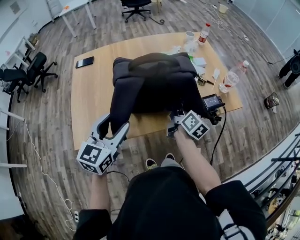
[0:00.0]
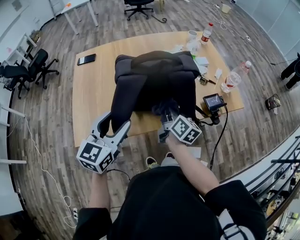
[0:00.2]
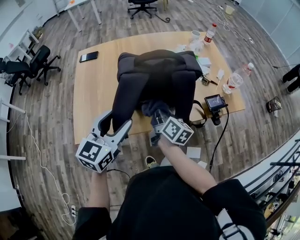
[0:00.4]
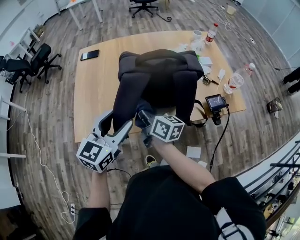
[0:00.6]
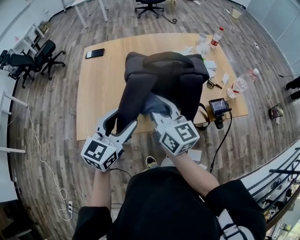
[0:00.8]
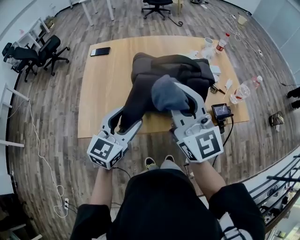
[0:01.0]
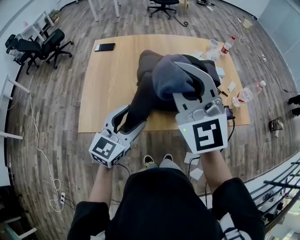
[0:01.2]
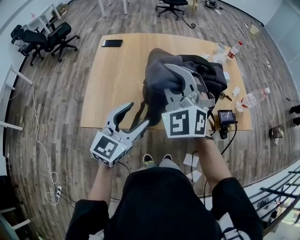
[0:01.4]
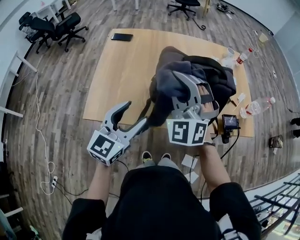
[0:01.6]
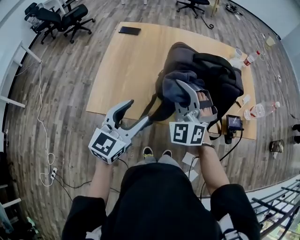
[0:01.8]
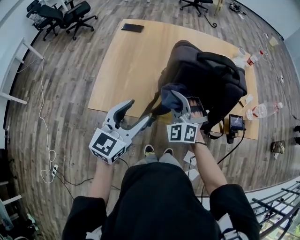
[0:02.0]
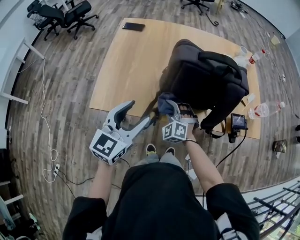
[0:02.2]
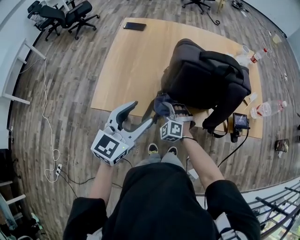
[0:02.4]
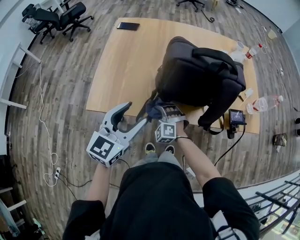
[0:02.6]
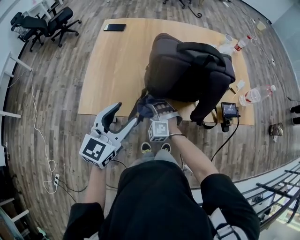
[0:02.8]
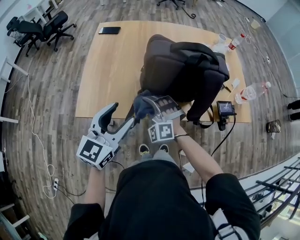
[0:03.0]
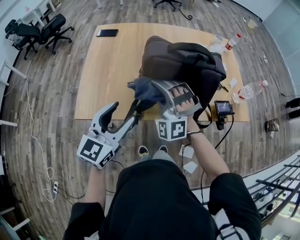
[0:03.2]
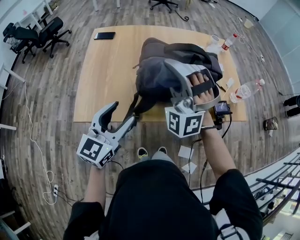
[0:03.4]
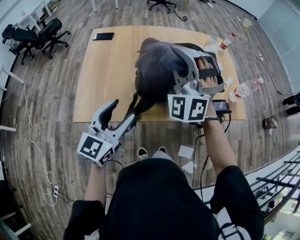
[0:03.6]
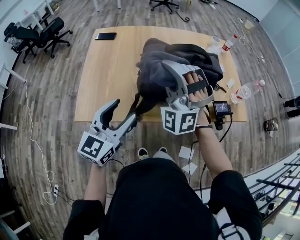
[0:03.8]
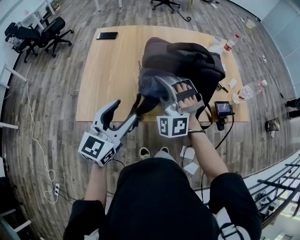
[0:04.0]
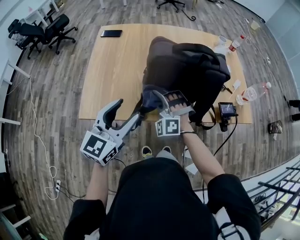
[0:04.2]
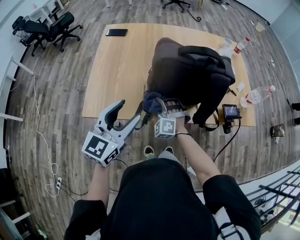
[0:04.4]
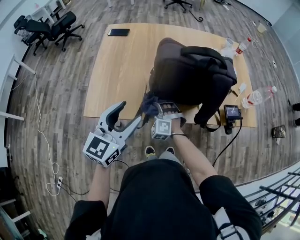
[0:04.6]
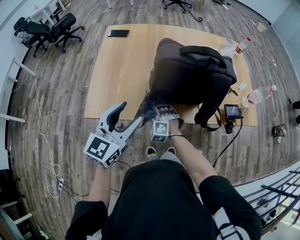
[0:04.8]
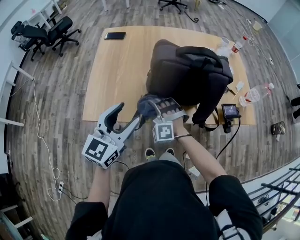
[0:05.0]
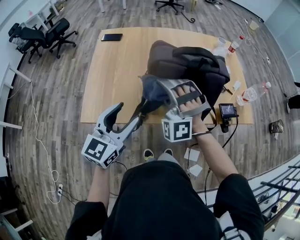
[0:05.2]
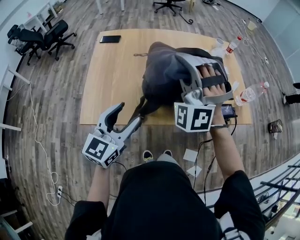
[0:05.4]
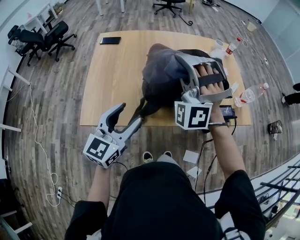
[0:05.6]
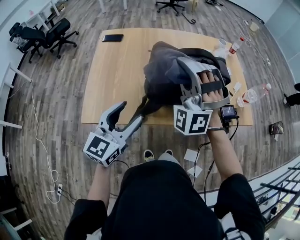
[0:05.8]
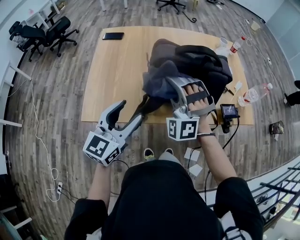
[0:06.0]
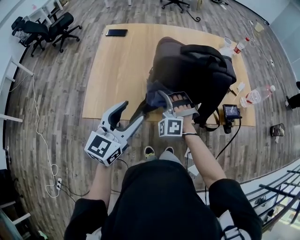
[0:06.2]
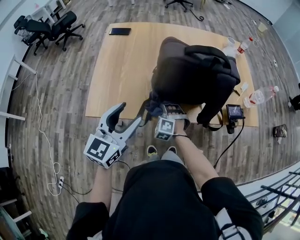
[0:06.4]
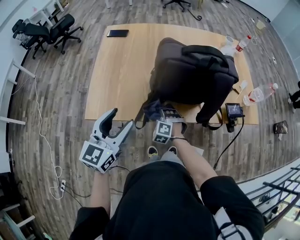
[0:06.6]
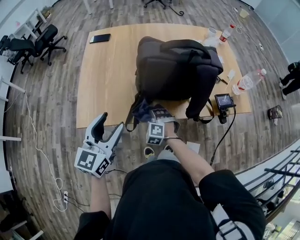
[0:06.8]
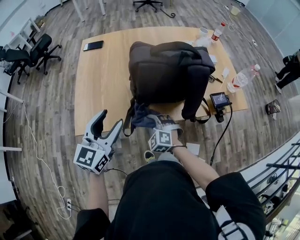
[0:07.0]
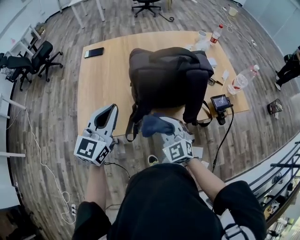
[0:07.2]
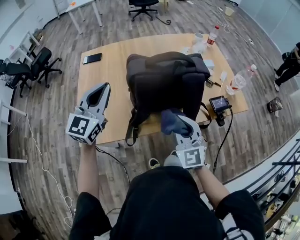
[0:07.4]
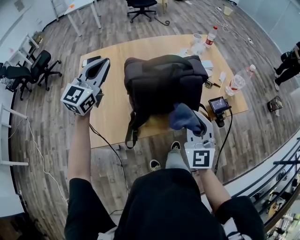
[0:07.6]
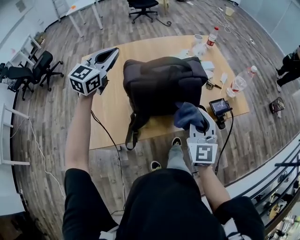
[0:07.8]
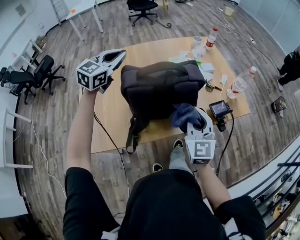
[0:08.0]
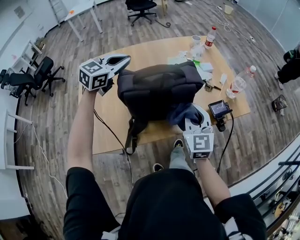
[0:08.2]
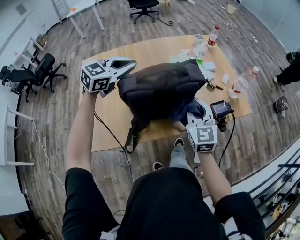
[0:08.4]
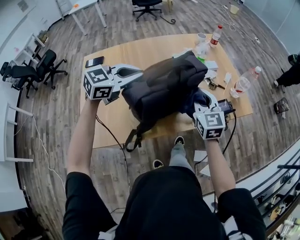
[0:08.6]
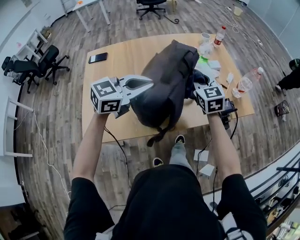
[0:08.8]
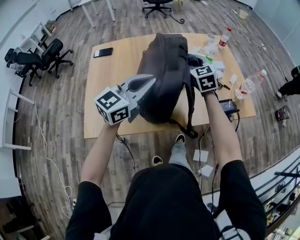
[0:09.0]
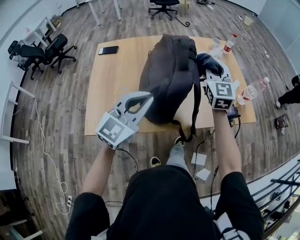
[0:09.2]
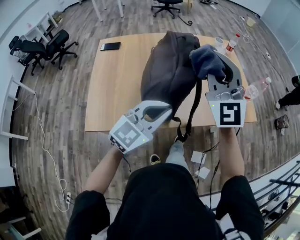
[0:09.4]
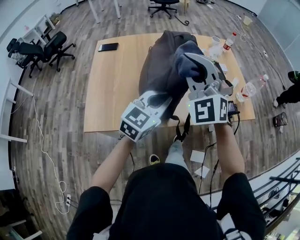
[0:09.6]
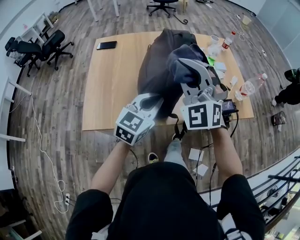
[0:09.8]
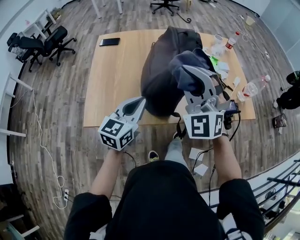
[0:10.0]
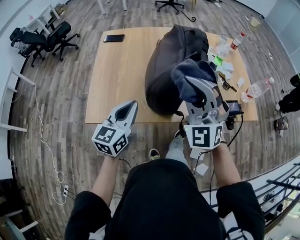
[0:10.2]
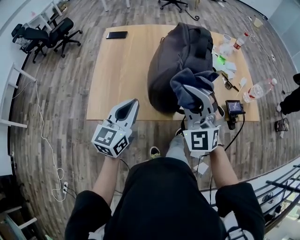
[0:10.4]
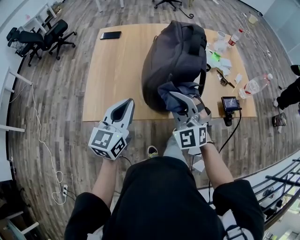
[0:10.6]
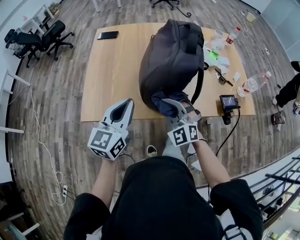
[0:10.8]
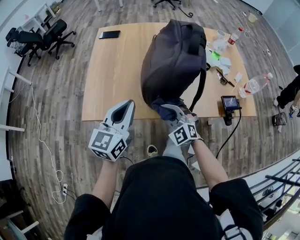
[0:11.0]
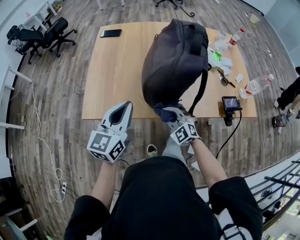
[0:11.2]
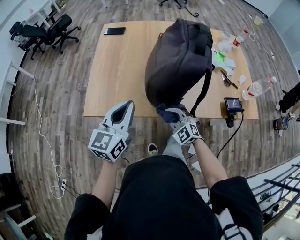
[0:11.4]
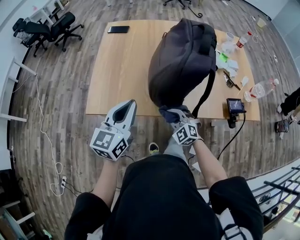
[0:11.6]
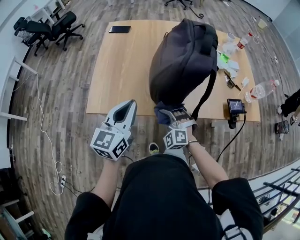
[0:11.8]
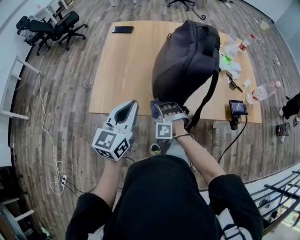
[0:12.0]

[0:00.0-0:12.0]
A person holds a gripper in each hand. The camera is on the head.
0.0 to 1.6 s: The right gripper goes roughly 30 cm to the left and upward, and twists roughly 110 degrees counterclockwise, seen from behind, while the left gripper moves some 5 cm.
1.6 to 3.0 s: The right gripper travels downward by roughly 25 cm, and changes its angle by roughly 20 degrees.
3.0 to 4.4 s: The right gripper moves about 30 cm upward and comes back.
4.4 to 6.0 s: The right gripper swings up and down, about 40 cm each way, with 2 reversals, and turns by about 30 degrees.
6.0 to 7.6 s: The right gripper shifts some 15 cm to the right, reaches about 30 cm downward, then returns, and rolls clockwise, seen from behind, by some 60 degrees; the left gripper travels forward and upward by about 25 cm, turns by roughly 20 degrees, and closes up.
7.6 to 9.0 s: The left gripper is displaced to the right by approximately 15 cm, and rotates about 20 degrees. Meanwhile the right gripper goes about 25 cm forward and to the left, and rotates approximately 20 degrees.
9.0 to 10.4 s: The left gripper goes some 20 cm backward, to the left and downward, and rotates some 30 degrees. Meanwhile the right gripper goes some 25 cm backward, and turns by about 40 degrees.
10.4 to 12.0 s: The right gripper travels downward by approximately 30 cm, and tips its fingers downward by approximately 40 degrees.

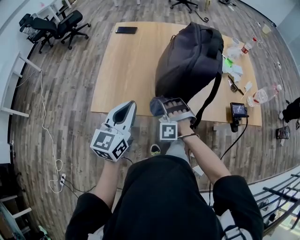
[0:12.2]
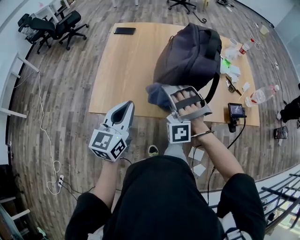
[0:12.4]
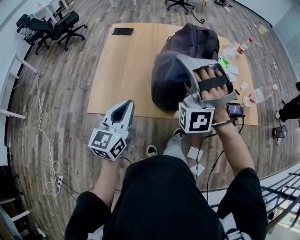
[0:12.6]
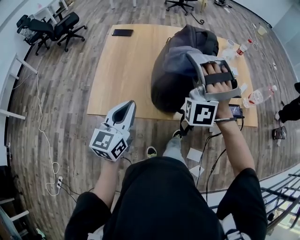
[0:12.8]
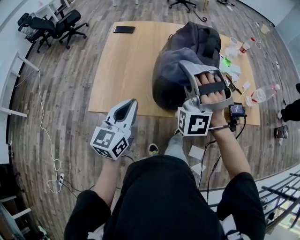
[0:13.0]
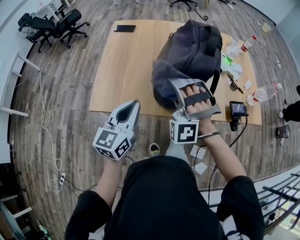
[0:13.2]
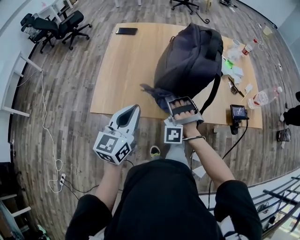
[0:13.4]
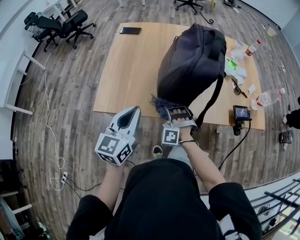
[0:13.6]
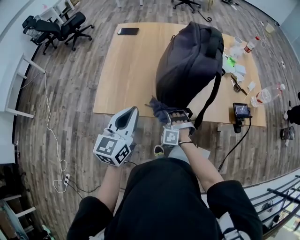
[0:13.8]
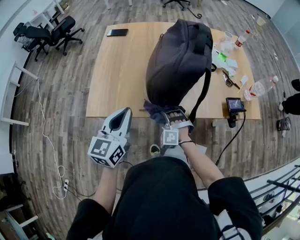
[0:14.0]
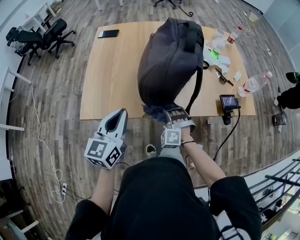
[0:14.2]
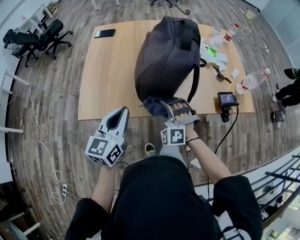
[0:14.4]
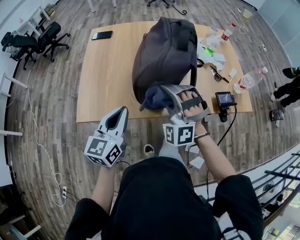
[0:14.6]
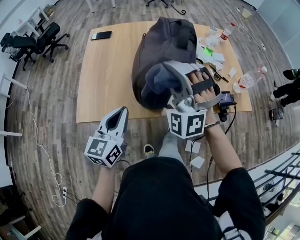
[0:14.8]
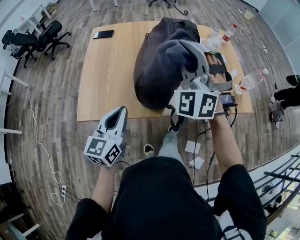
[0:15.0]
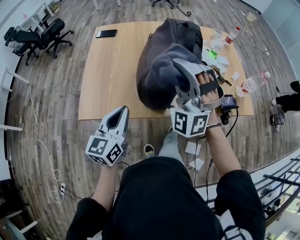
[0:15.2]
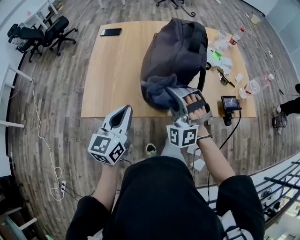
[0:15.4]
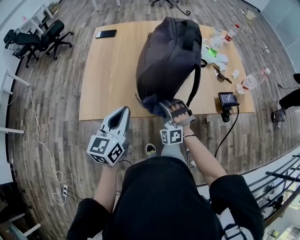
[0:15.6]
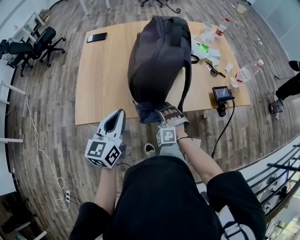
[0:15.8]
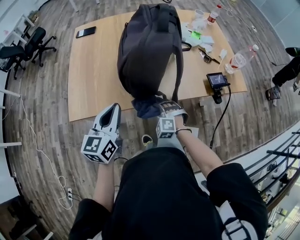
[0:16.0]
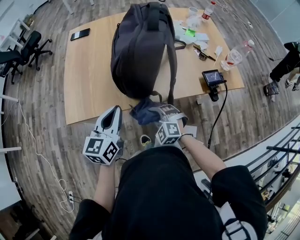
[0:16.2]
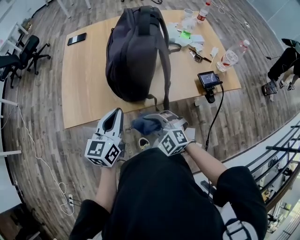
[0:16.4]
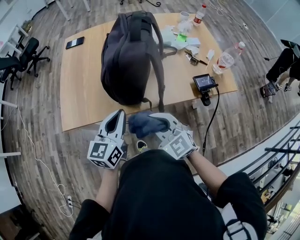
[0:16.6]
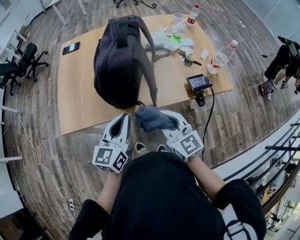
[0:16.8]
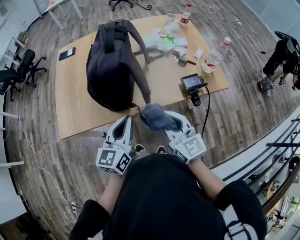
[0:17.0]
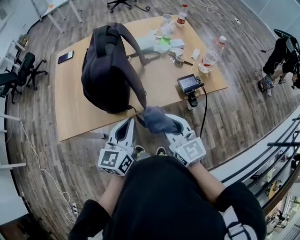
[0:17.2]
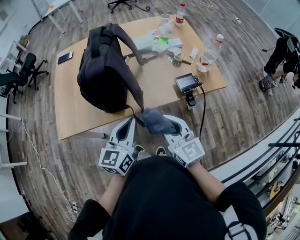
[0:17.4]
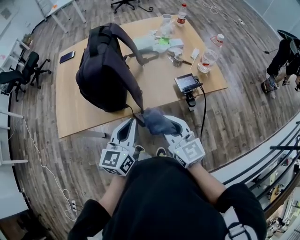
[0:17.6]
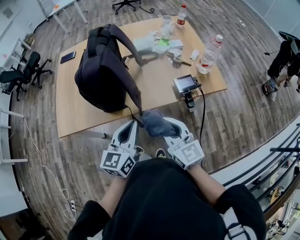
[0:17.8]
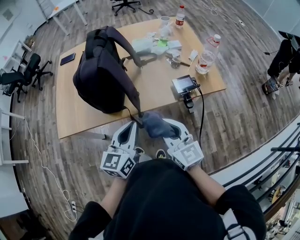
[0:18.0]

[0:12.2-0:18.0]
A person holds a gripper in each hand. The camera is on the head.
12.2 to 13.6 s: The right gripper goes upward and returns, some 30 cm each way.
13.6 to 15.0 s: The right gripper goes about 35 cm upward, and angles its fingers upward, by approximately 40 degrees.
15.0 to 16.6 s: The right gripper travels downward and backward by about 30 cm, and rolls clockwise, seen from behind, by roughly 60 degrees; the left gripper travels to the right by approximately 10 cm.
16.6 to 18.0 s: Both grippers move to the right, some 20 cm. The right gripper changes its angle by approximately 30 degrees.

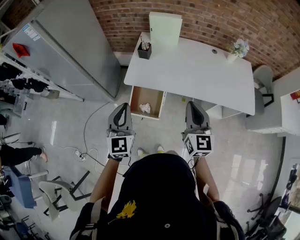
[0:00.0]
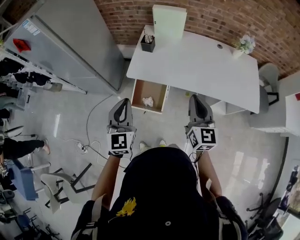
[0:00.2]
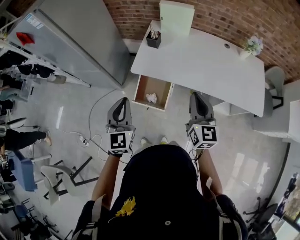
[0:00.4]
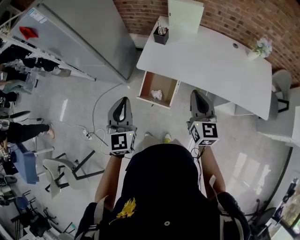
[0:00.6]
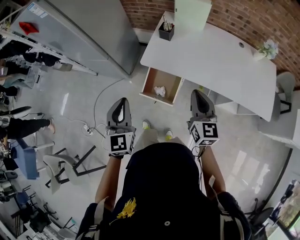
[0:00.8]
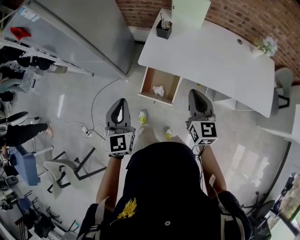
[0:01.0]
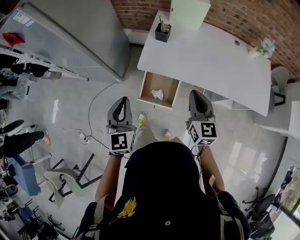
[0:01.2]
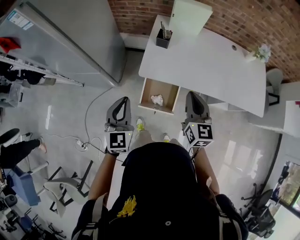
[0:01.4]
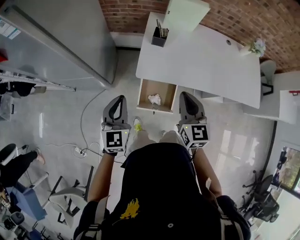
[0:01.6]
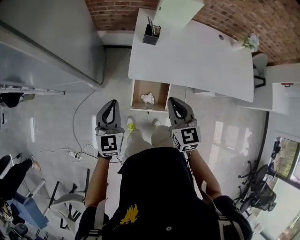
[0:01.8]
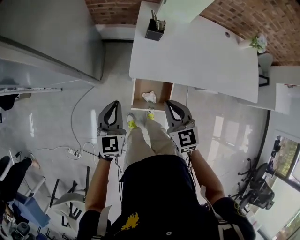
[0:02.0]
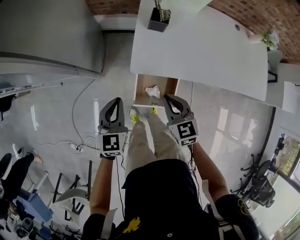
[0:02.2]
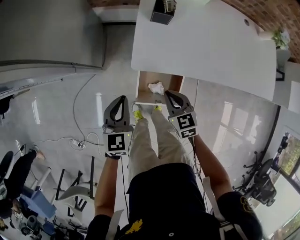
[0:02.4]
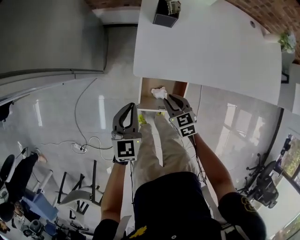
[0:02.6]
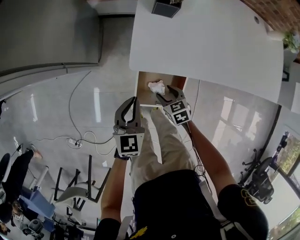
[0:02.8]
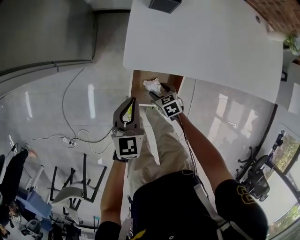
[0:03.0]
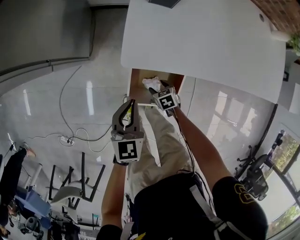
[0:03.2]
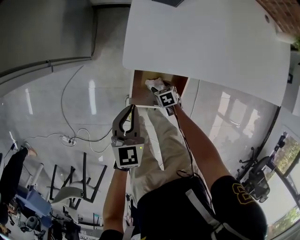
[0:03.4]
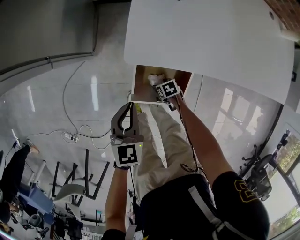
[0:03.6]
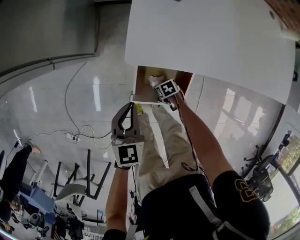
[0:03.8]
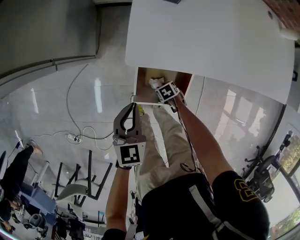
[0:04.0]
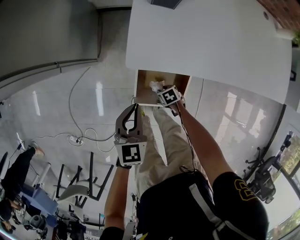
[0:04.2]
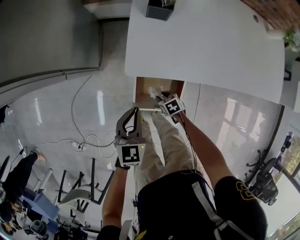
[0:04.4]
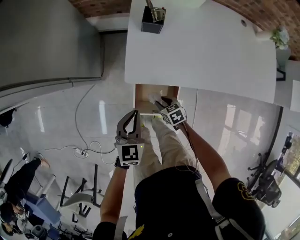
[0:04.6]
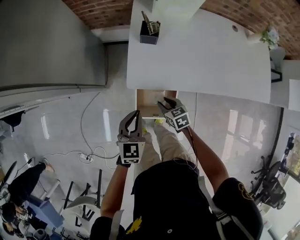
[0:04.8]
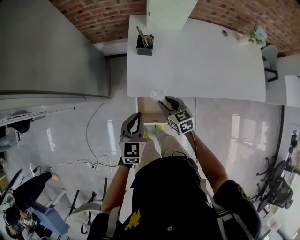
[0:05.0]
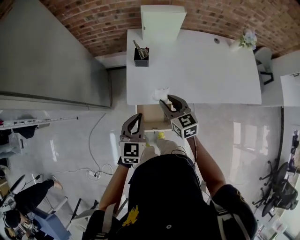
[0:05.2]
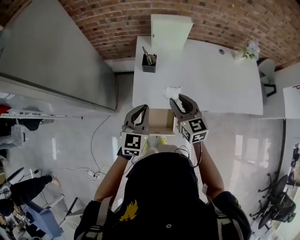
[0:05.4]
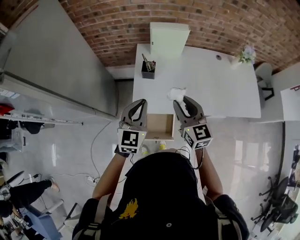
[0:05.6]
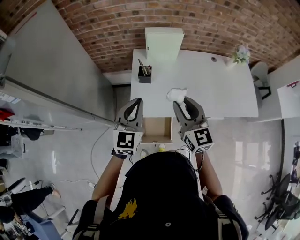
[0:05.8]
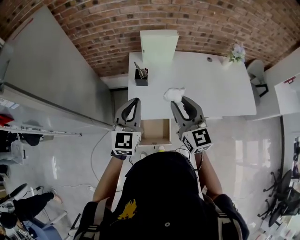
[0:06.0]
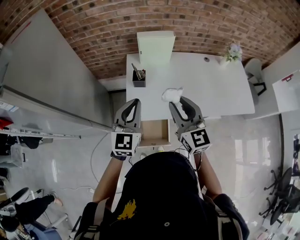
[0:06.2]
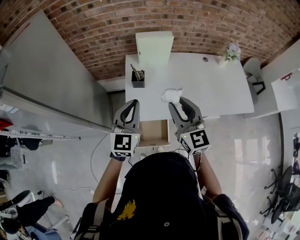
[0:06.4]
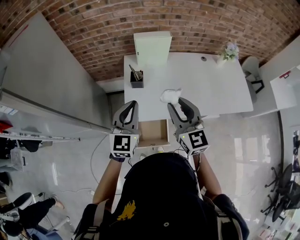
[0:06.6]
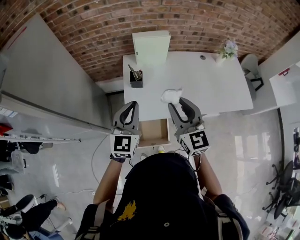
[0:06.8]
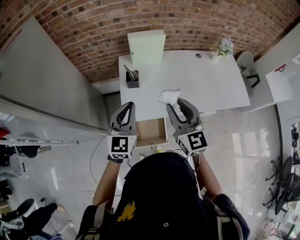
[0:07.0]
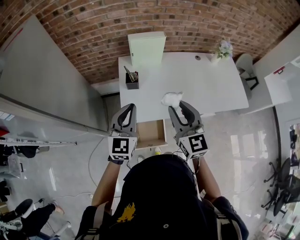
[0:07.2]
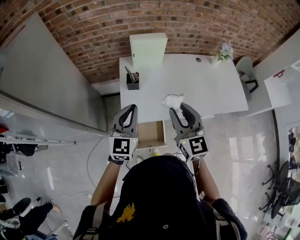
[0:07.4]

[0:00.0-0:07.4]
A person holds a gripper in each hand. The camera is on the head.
0.0 to 1.4 s: The grippers both shift to the left, forward and downward by about 20 cm.
1.4 to 3.0 s: The left gripper heads downward, covering approximately 30 cm, and swivels roughly 20 degrees, while the right gripper shifts approximately 50 cm downward, tips its fingers downward by approximately 50 degrees, and opens.
3.0 to 4.4 s: The right gripper reaches about 15 cm downward, then returns, and closes its fingers.
4.4 to 6.0 s: The left gripper shifts approximately 35 cm upward, and changes its angle by some 30 degrees; the right gripper is displaced upward by approximately 70 cm, and tilts its fingers some 60 degrees upward.
6.0 to 7.4 s: The grippers move only a little.
